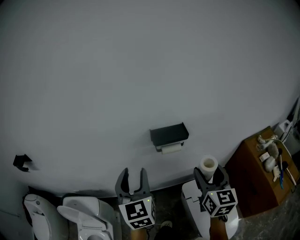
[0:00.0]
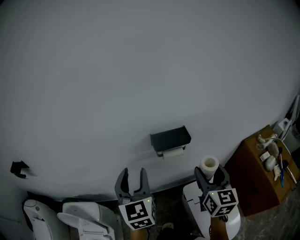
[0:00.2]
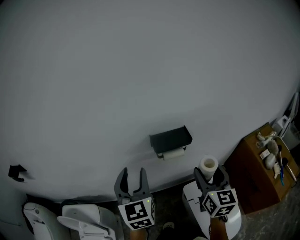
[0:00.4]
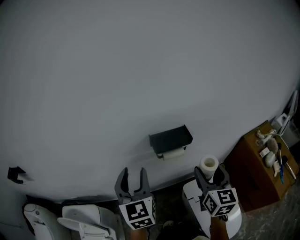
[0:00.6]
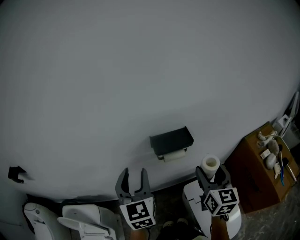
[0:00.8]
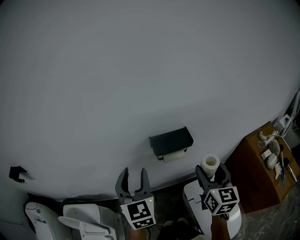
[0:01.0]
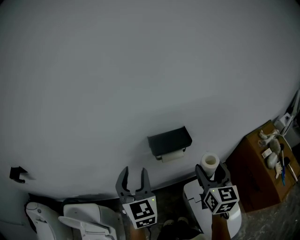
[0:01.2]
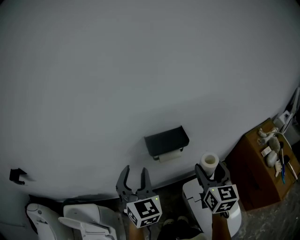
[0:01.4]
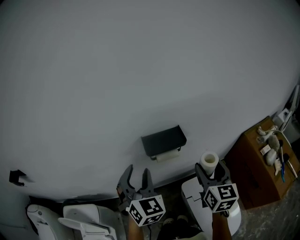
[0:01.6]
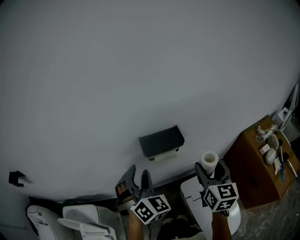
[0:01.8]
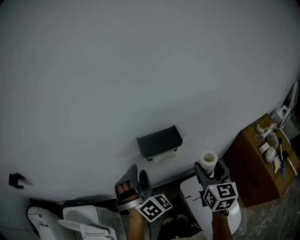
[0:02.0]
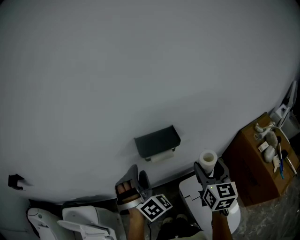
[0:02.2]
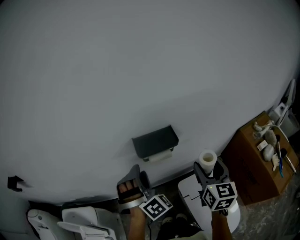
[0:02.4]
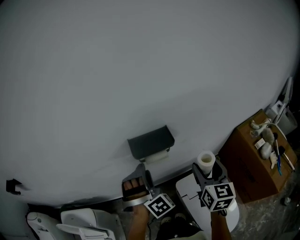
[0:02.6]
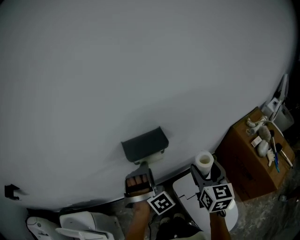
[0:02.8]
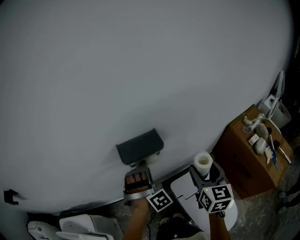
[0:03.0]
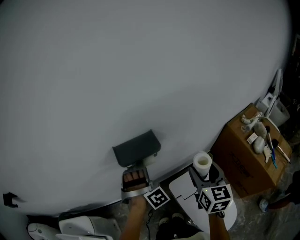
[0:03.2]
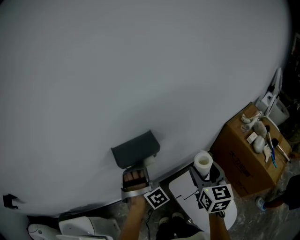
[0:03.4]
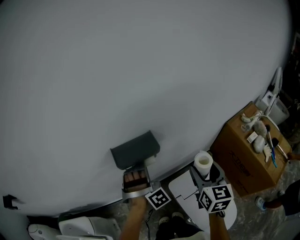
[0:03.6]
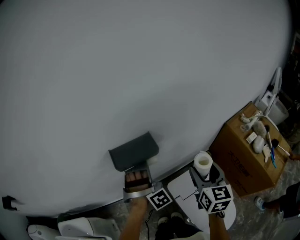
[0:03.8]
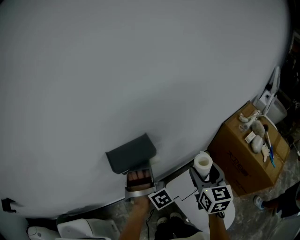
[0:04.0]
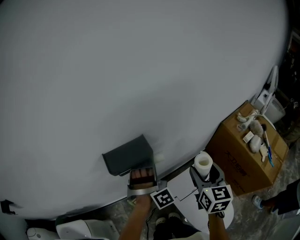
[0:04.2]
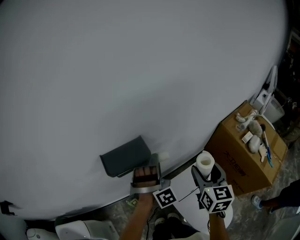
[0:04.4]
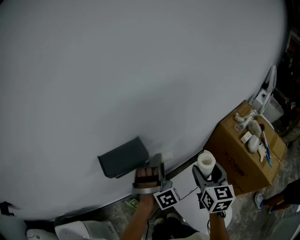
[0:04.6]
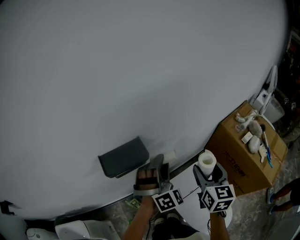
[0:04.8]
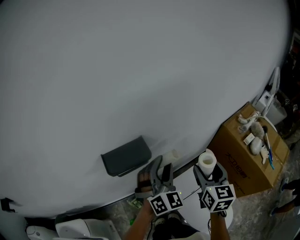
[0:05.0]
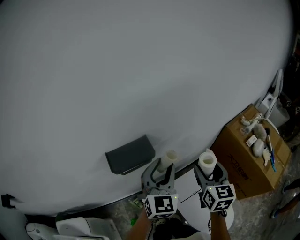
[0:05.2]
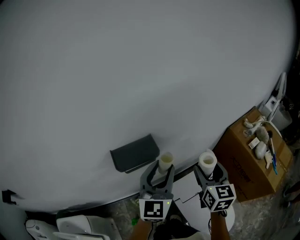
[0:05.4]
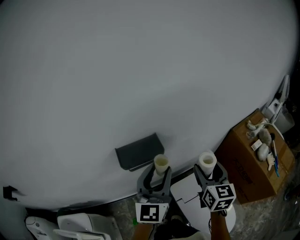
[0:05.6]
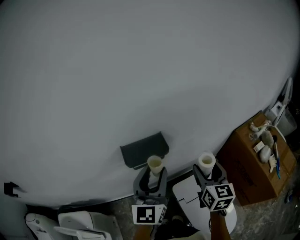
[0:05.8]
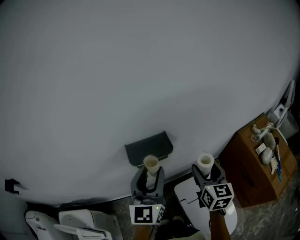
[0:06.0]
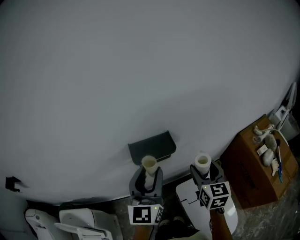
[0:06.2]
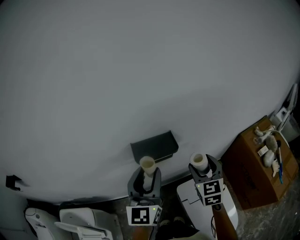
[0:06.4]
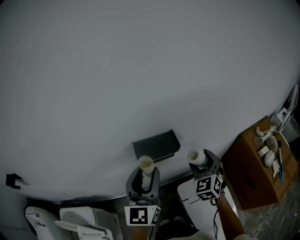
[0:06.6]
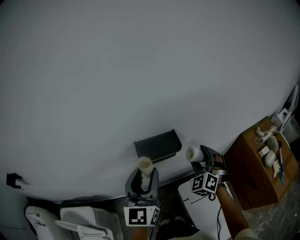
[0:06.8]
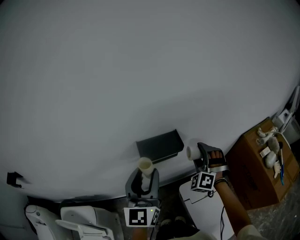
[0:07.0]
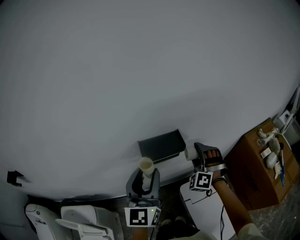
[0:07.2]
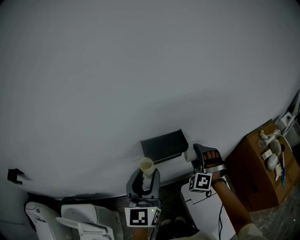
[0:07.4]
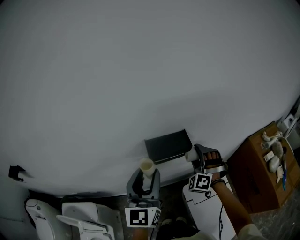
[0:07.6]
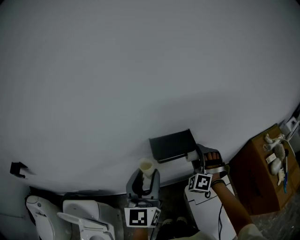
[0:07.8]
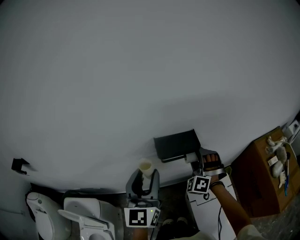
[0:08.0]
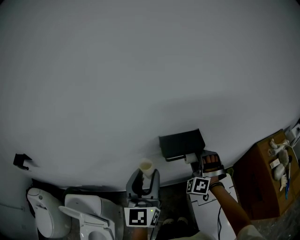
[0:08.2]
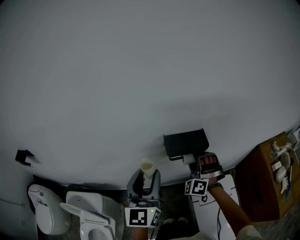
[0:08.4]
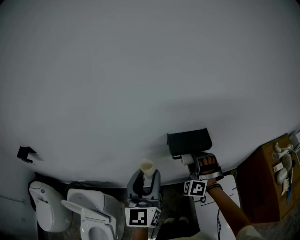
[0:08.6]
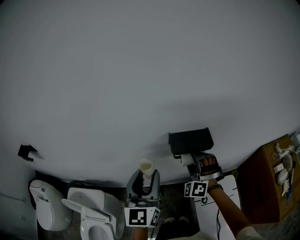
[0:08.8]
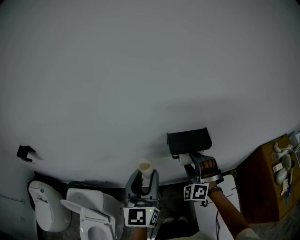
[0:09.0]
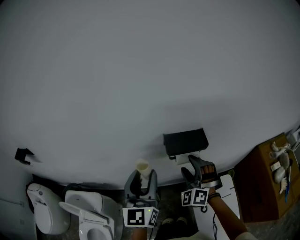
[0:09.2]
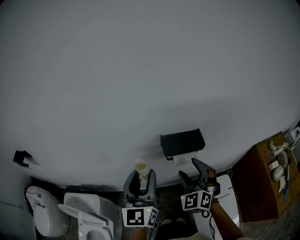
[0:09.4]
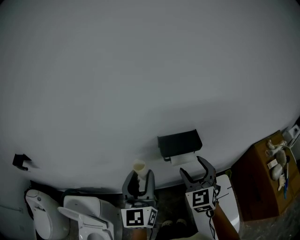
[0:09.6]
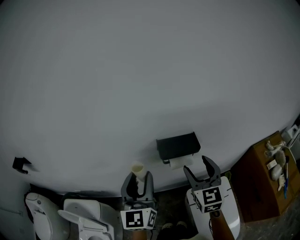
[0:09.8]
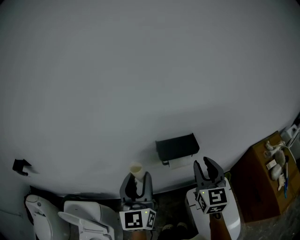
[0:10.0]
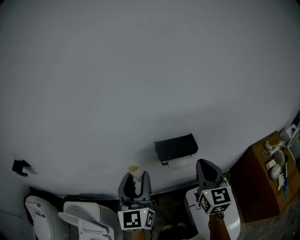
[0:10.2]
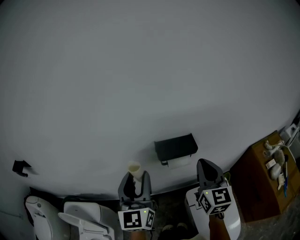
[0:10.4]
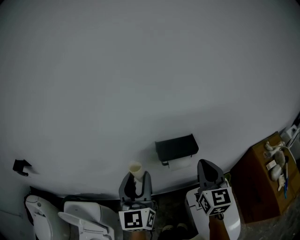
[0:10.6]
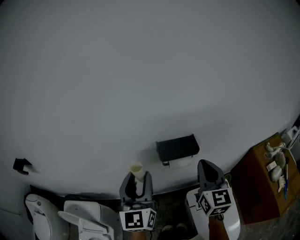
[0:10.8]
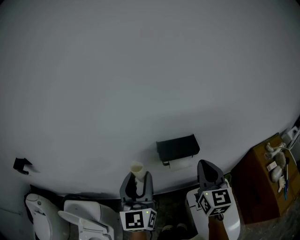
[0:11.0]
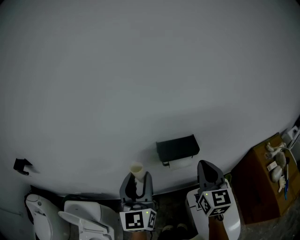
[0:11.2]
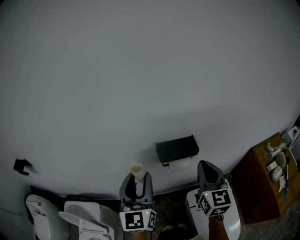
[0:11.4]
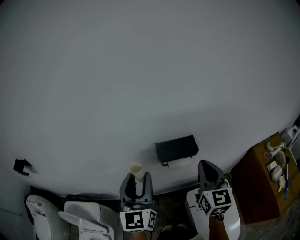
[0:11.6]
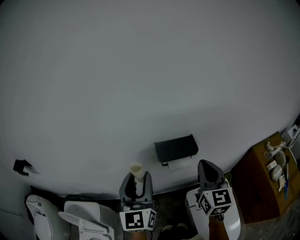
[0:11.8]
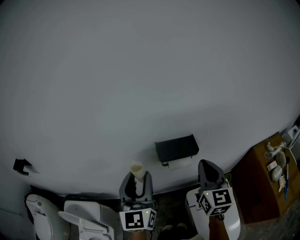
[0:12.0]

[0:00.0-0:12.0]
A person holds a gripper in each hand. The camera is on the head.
0:00.0 to 0:01.6: The grippers both shift forward by some 10 cm. The left gripper swivels approximately 30 degrees.
0:01.6 to 0:03.0: The left gripper shifts approximately 15 cm to the right and downward, and twists some 60 degrees clockwise, seen from behind, while the right gripper heads to the right, covering about 5 cm.
0:03.0 to 0:04.4: The right gripper goes some 5 cm to the right. Meanwhile the left gripper travels to the right by roughly 10 cm.
0:04.4 to 0:06.0: The left gripper heads upward, backward and to the left, covering some 20 cm, and twists roughly 80 degrees counterclockwise, seen from behind. Meanwhile the right gripper moves to the left, roughly 5 cm.
0:06.0 to 0:07.6: The left gripper goes about 10 cm to the left, while the right gripper travels to the left, forward and downward by roughly 15 cm, and rolls counterclockwise, seen from behind, by about 90 degrees.
0:07.6 to 0:09.0: The right gripper goes approximately 10 cm to the left; the left gripper is displaced to the left by roughly 5 cm.
0:09.0 to 0:10.4: The right gripper is displaced upward, to the right and backward by roughly 15 cm, twists some 80 degrees clockwise, seen from behind, and closes.
0:10.4 to 0:12.0: The two grippers keep their place.

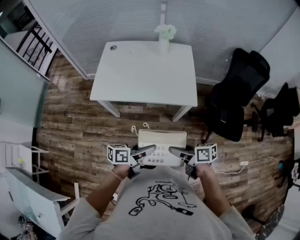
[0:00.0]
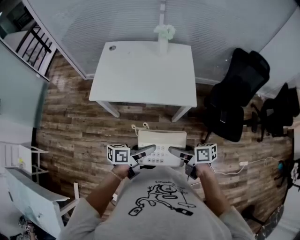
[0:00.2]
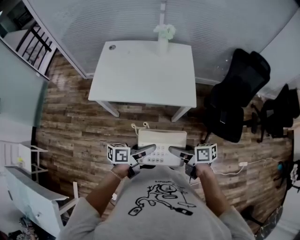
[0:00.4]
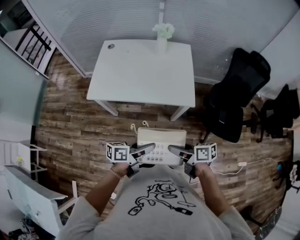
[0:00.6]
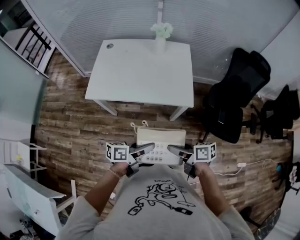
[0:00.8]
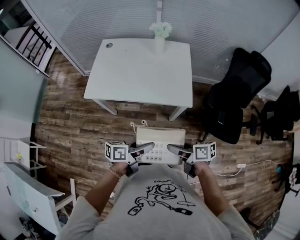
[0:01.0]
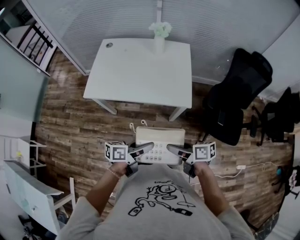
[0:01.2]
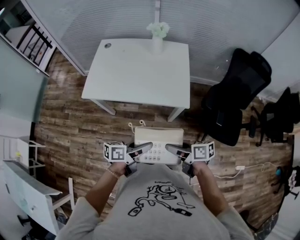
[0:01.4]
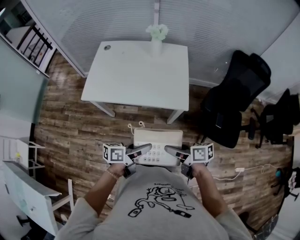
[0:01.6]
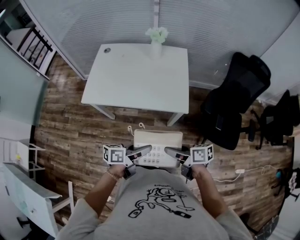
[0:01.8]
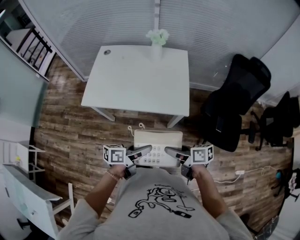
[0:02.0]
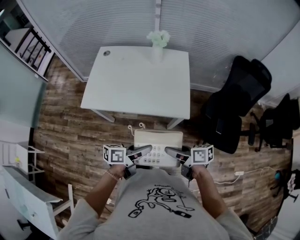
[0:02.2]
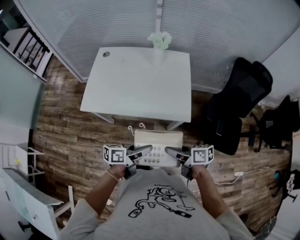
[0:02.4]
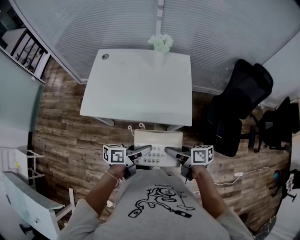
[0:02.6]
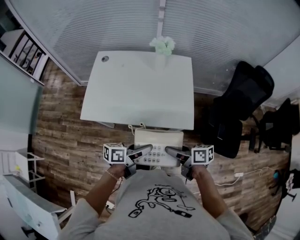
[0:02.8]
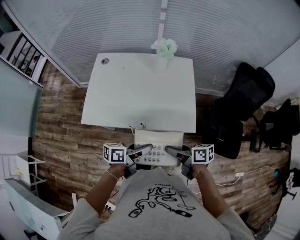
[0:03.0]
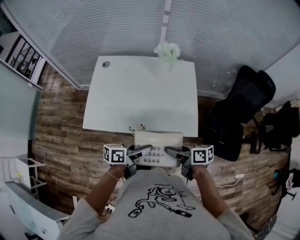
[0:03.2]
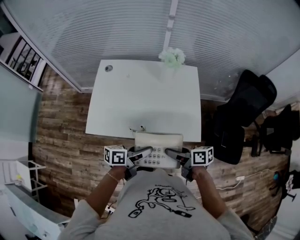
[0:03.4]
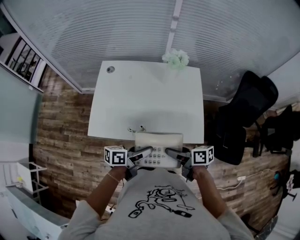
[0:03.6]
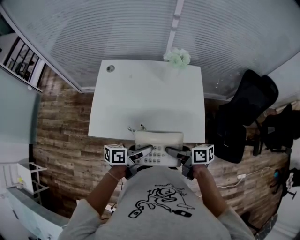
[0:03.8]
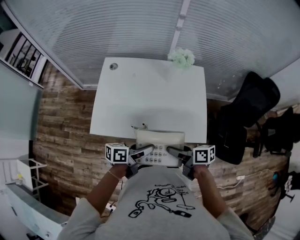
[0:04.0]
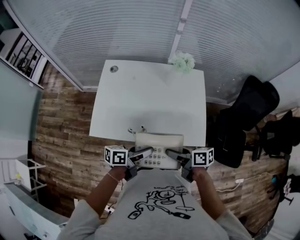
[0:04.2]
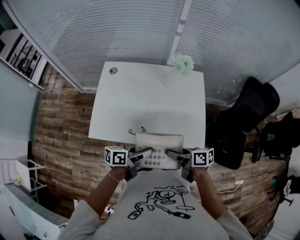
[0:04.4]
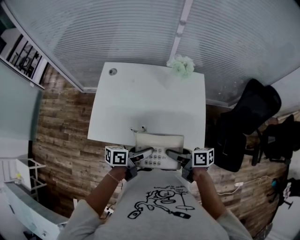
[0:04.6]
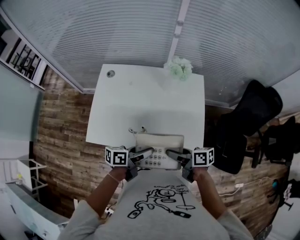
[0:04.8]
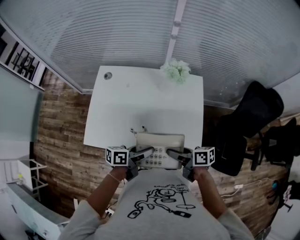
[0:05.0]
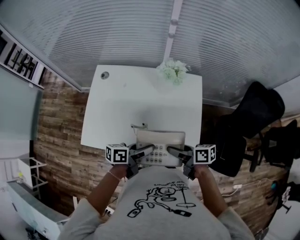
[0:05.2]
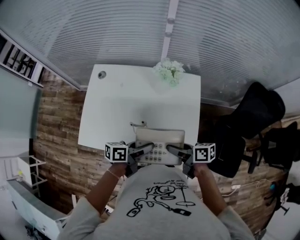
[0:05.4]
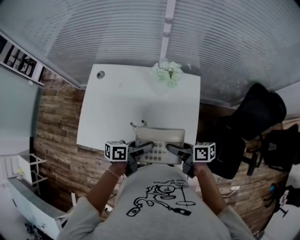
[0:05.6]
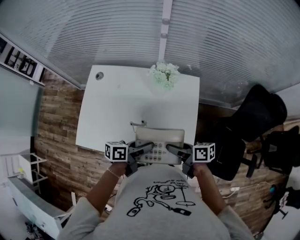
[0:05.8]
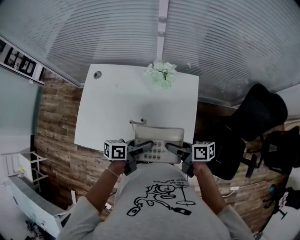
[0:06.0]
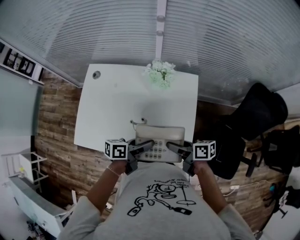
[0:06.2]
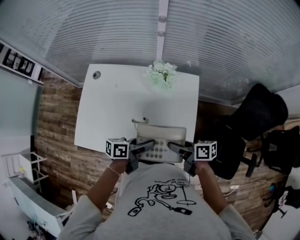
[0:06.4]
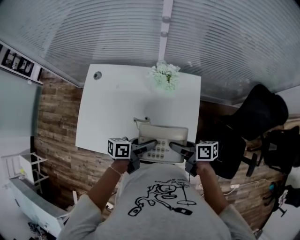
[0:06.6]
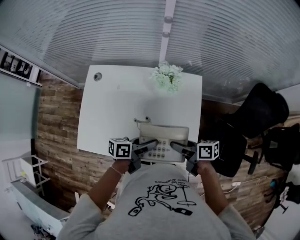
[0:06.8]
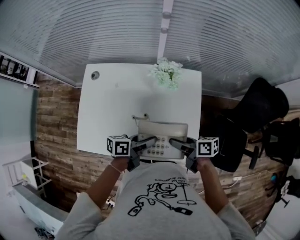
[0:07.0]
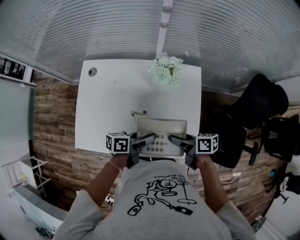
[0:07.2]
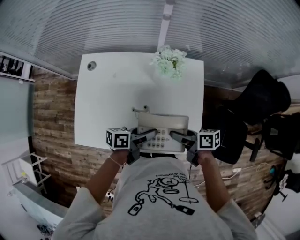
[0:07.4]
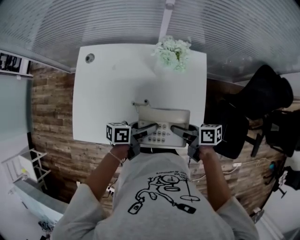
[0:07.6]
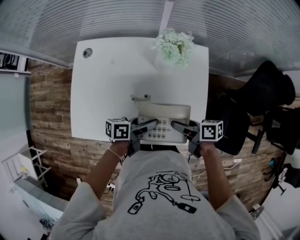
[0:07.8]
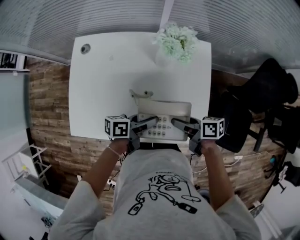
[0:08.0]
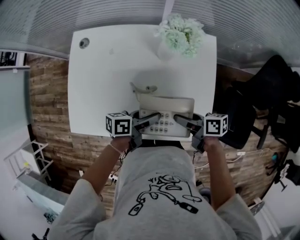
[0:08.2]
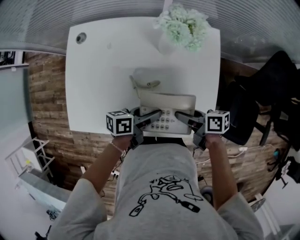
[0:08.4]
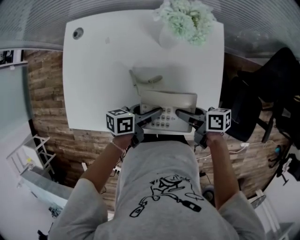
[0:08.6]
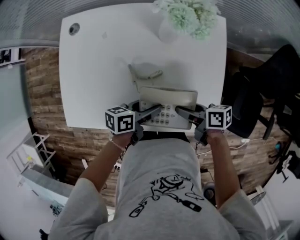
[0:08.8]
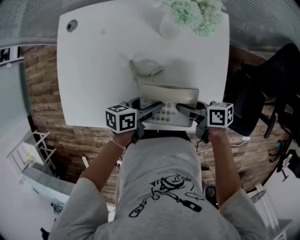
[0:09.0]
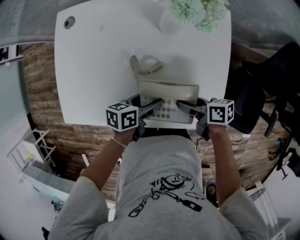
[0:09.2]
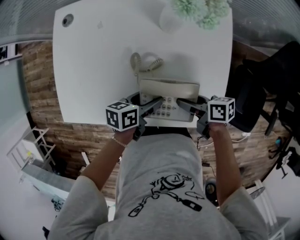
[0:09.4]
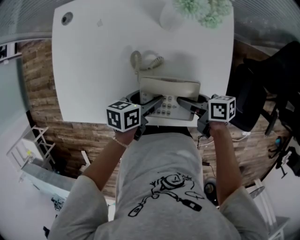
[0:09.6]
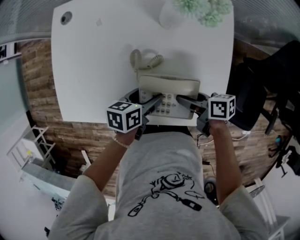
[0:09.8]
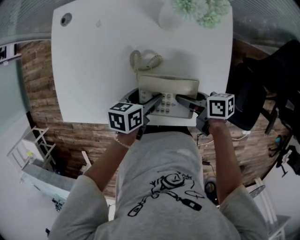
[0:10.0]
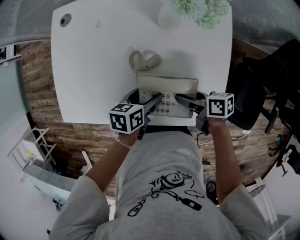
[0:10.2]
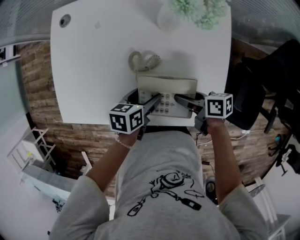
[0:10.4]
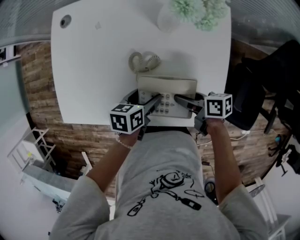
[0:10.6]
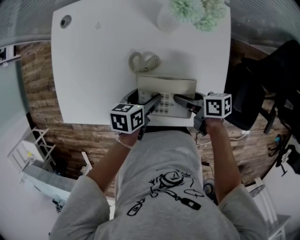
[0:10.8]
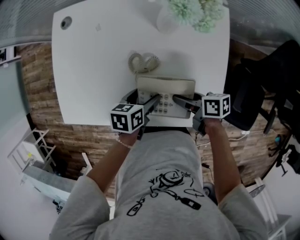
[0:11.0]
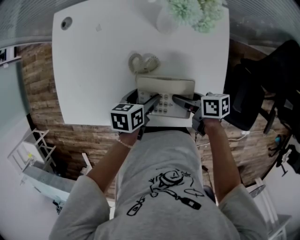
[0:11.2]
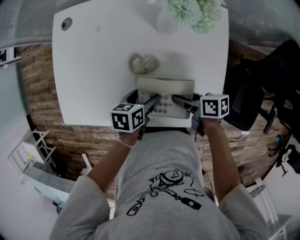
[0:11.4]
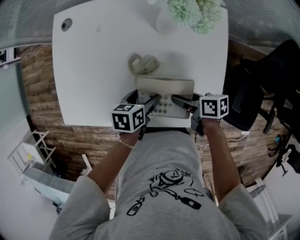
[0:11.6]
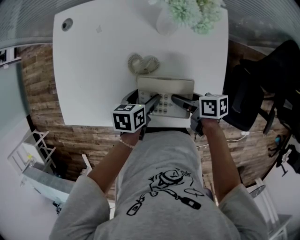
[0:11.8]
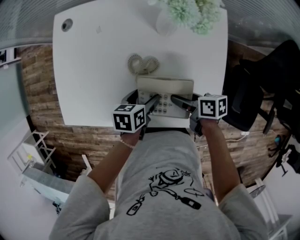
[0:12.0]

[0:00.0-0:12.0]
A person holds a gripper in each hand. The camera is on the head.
0:00.0 to 0:01.6: The two grippers go approximately 5 cm to the right.
0:01.6 to 0:03.0: The two grippers go about 15 cm forward.
0:03.0 to 0:04.4: The grippers both shift forward and to the left by roughly 10 cm.
0:04.4 to 0:06.0: The two grippers go roughly 15 cm forward and to the right.
0:06.0 to 0:07.6: The right gripper shifts by roughly 5 cm. The left gripper shifts by some 5 cm.
0:07.6 to 0:09.0: The grippers both shift downward by about 10 cm.
0:09.0 to 0:10.4: The grippers move only a little.
0:10.4 to 0:12.0: The grippers move only a little.
